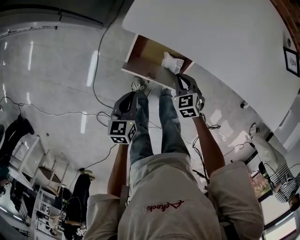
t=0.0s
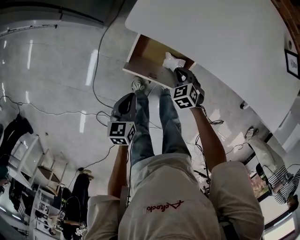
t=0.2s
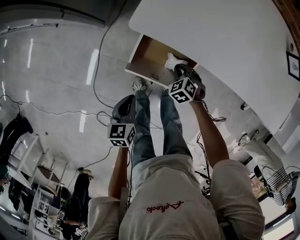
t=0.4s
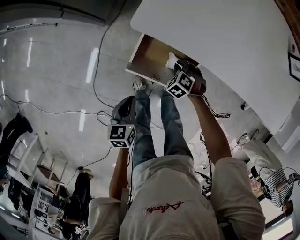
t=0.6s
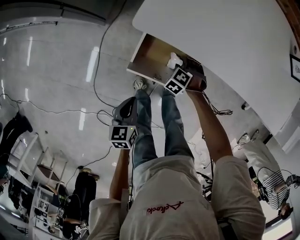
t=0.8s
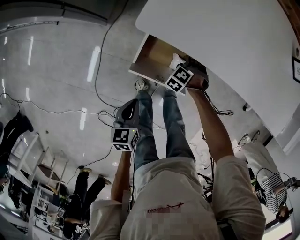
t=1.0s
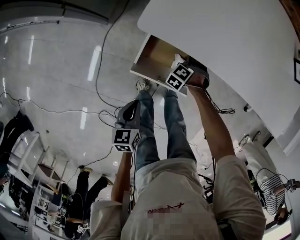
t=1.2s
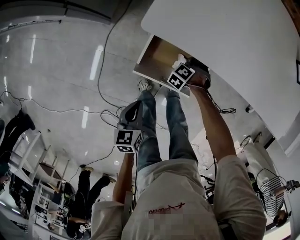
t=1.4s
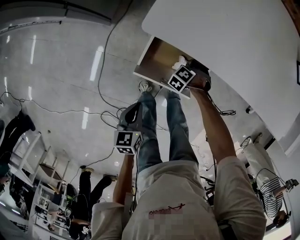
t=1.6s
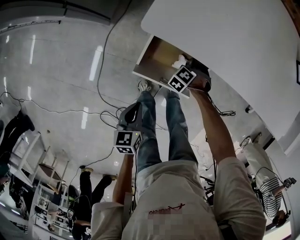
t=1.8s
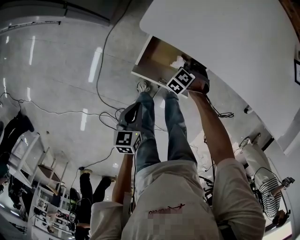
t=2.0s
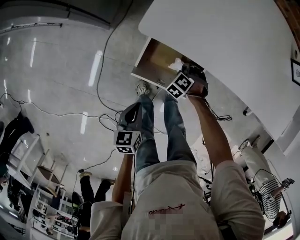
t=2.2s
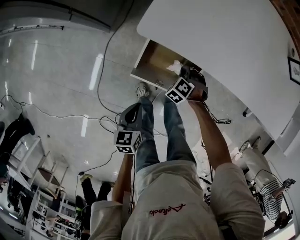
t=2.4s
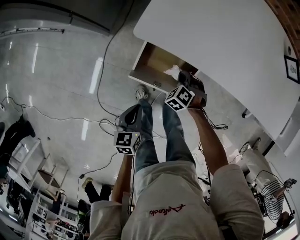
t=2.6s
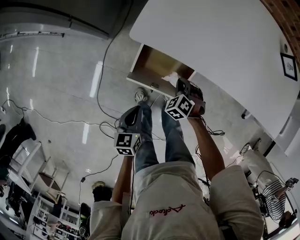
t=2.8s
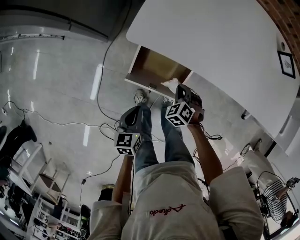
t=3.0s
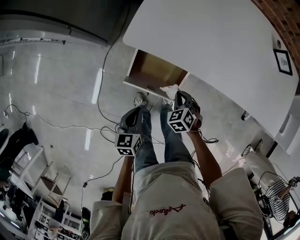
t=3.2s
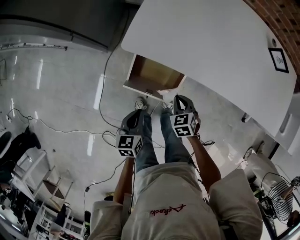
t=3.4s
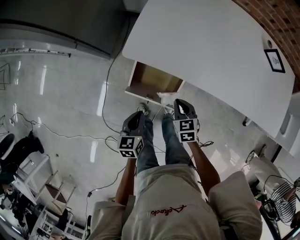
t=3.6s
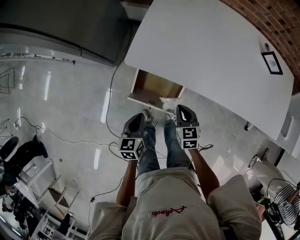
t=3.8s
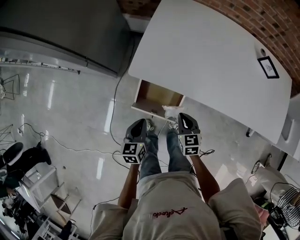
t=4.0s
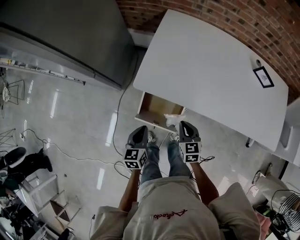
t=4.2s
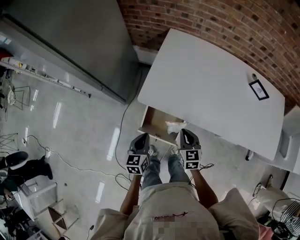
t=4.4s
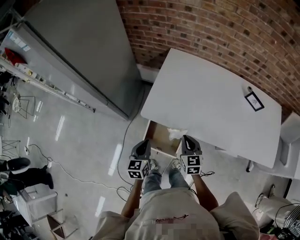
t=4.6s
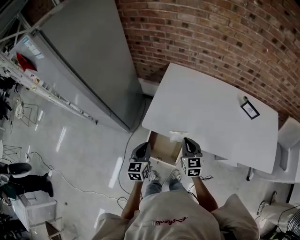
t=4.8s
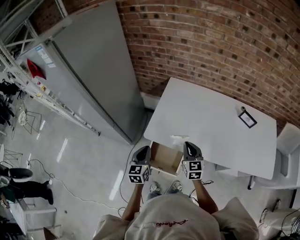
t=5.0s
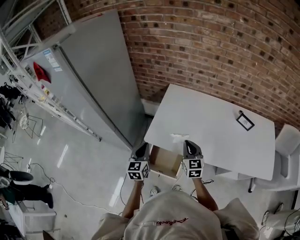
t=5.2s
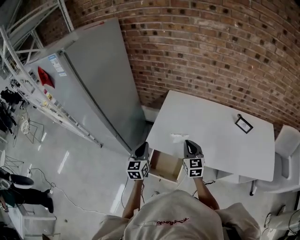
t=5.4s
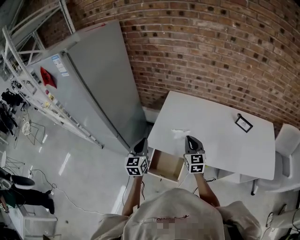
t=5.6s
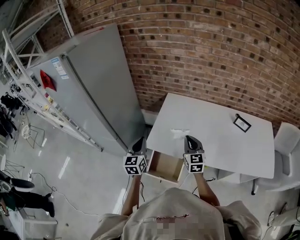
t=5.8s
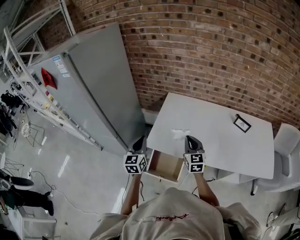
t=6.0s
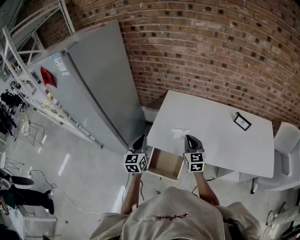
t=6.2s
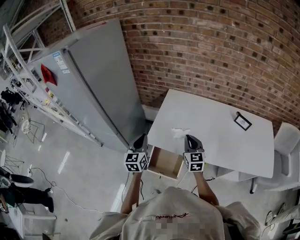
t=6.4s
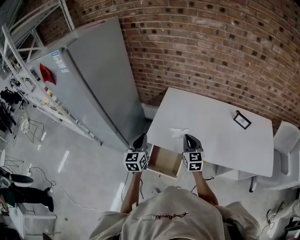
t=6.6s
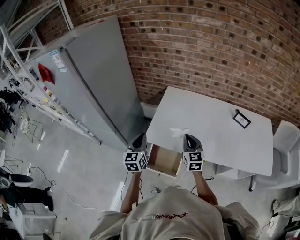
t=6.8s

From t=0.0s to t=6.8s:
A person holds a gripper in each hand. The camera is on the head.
From t=0.0s to t=1.4s: The right gripper goes approximately 15 cm downward, and rotates approximately 50 degrees.
From t=1.4s to t=2.8s: The right gripper travels upward by about 15 cm, and swivels roughly 30 degrees.
From t=2.8s to t=4.0s: The left gripper shifts about 10 cm upward and forward, while the right gripper is displaced upward by some 15 cm, and rolls clockwise, seen from behind, by some 50 degrees.
From t=4.0s to t=5.4s: The two grippers go about 25 cm upward and forward. The right gripper changes its angle by approximately 30 degrees. The left gripper changes its angle by approximately 30 degrees.
From t=5.4s to t=6.8s: The grippers stay close to where they were, moving slightly.

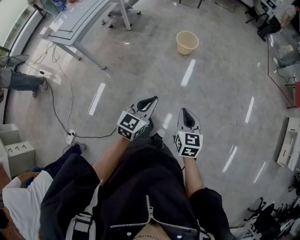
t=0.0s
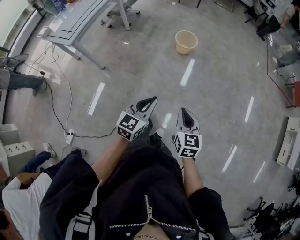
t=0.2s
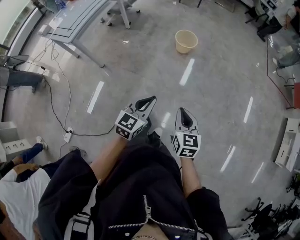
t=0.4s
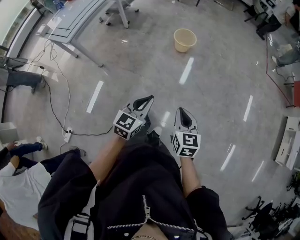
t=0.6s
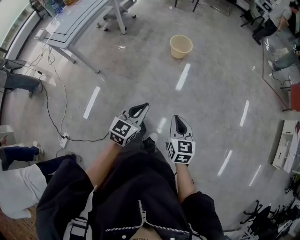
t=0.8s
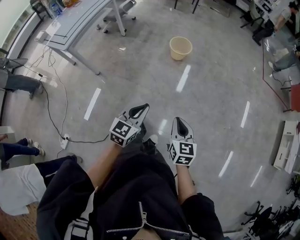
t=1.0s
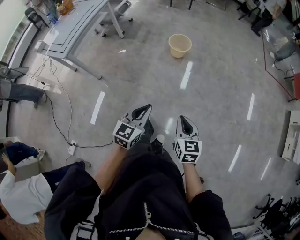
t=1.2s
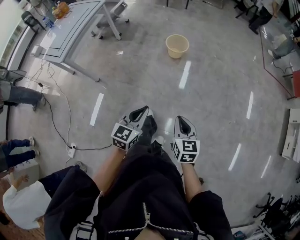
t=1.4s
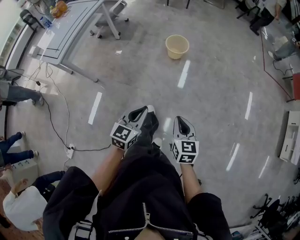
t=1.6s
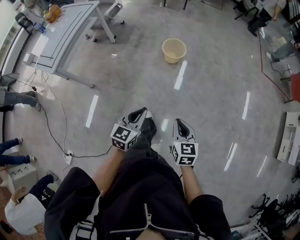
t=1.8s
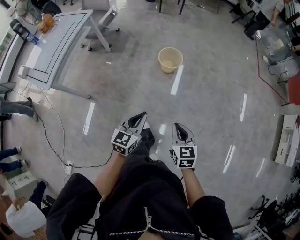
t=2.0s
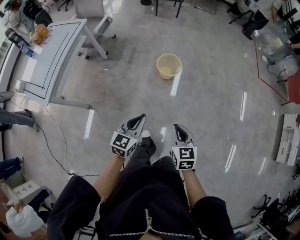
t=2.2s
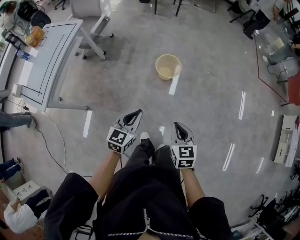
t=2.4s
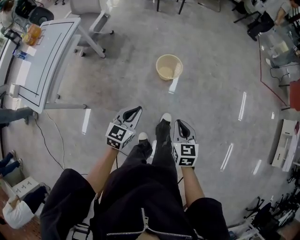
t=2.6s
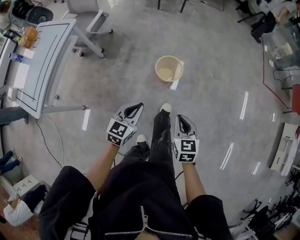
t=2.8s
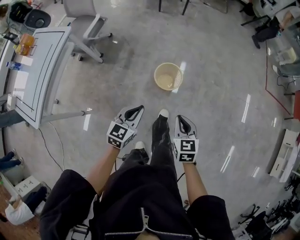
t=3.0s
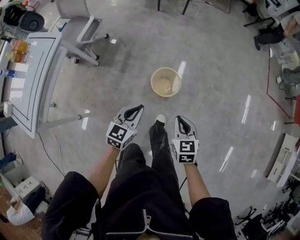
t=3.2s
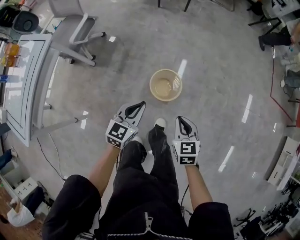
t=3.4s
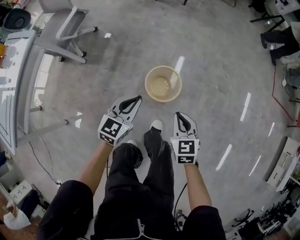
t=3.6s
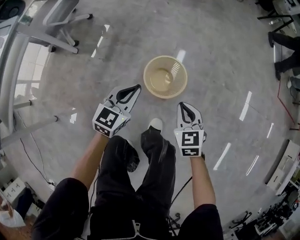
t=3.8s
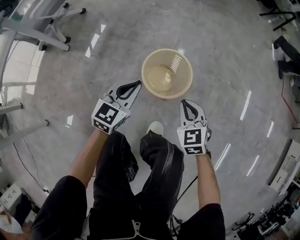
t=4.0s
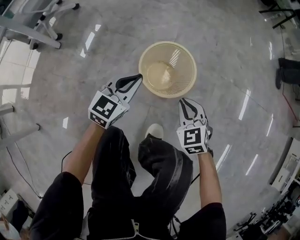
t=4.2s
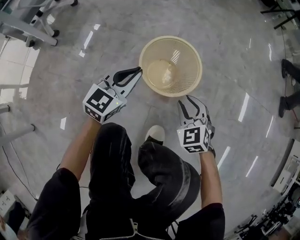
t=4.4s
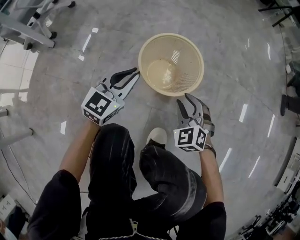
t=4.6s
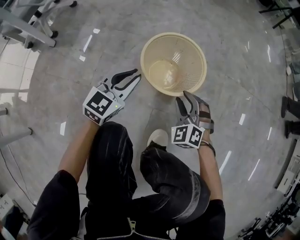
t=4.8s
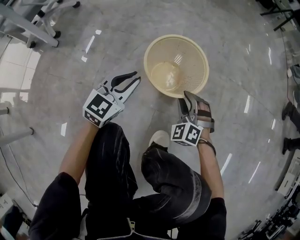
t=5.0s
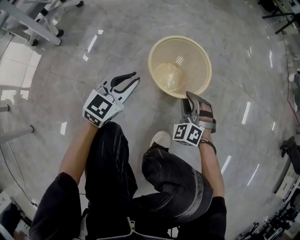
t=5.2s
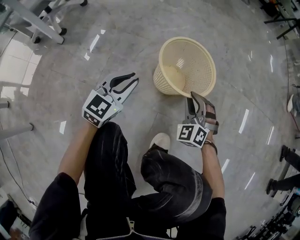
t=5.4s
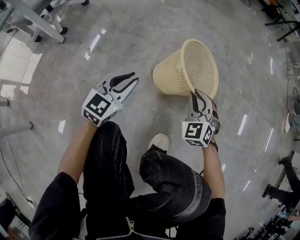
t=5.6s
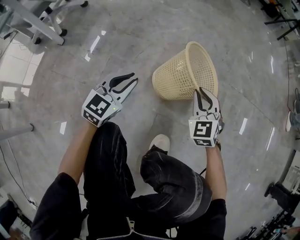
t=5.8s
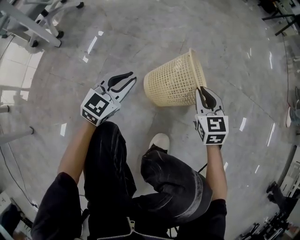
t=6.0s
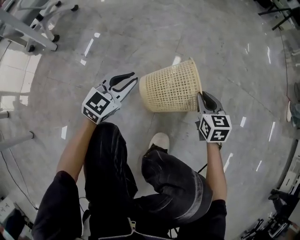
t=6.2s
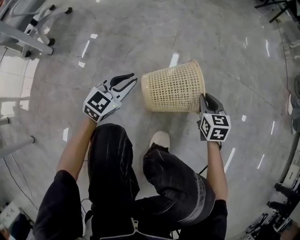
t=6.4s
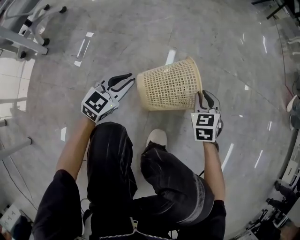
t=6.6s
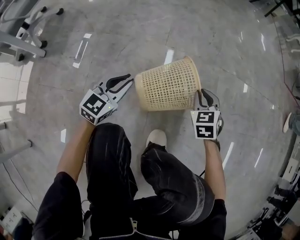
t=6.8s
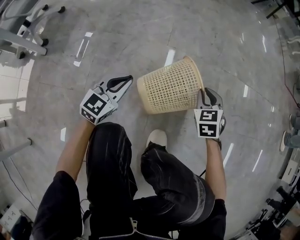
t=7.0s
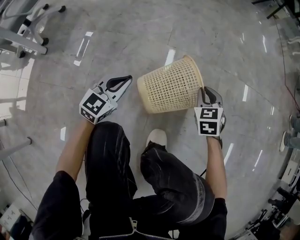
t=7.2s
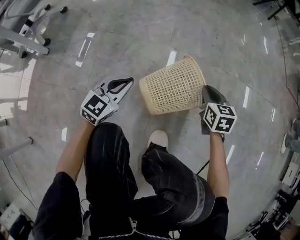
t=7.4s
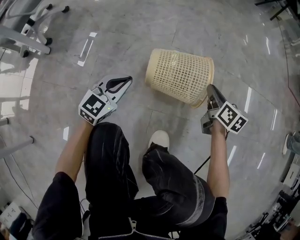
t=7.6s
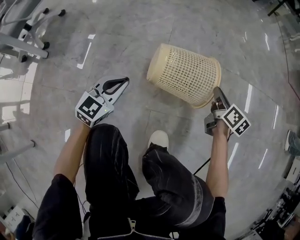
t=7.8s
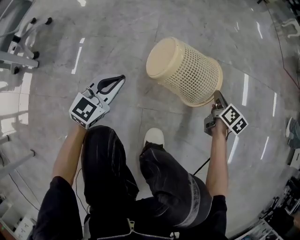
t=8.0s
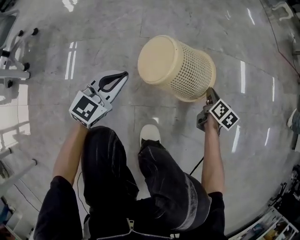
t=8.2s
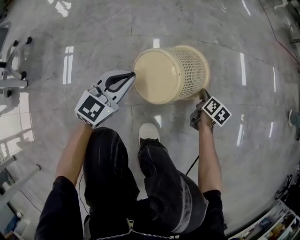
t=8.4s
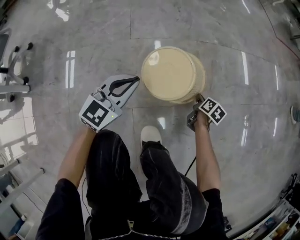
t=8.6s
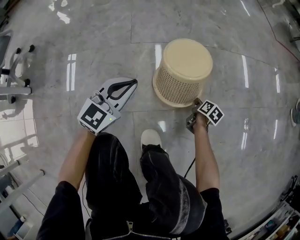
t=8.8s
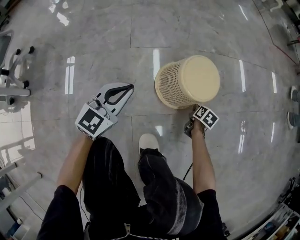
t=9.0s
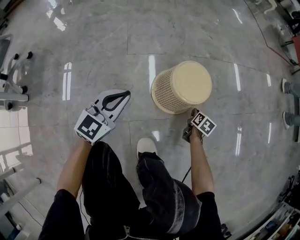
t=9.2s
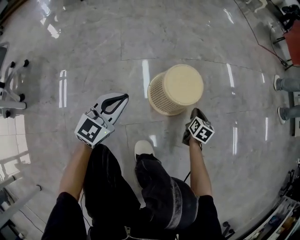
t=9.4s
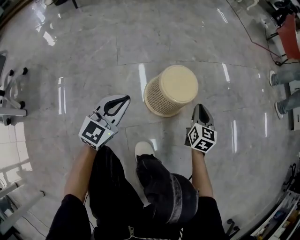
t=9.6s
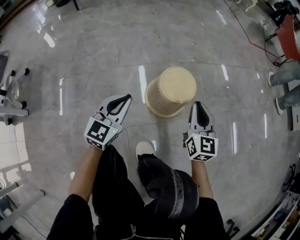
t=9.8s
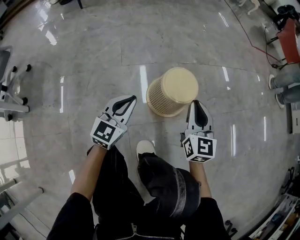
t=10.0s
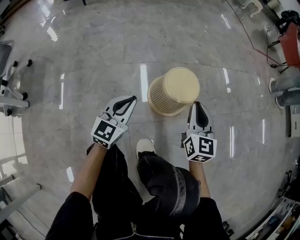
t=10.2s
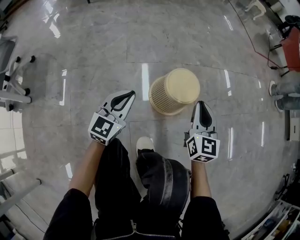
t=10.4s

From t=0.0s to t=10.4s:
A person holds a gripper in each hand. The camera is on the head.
From t=0.0s to t=1.4s: The right gripper ends up about 5 cm from where it was.
From t=1.4s to t=3.0s: Both grippers are carried forward, roughly 60 cm.
From t=3.0s to t=4.4s: The right gripper travels downward by roughly 60 cm, swivels about 40 degrees, and opens. The left gripper heads downward and forward, covering about 60 cm.
From t=4.4s to t=6.0s: The left gripper heads downward, covering approximately 5 cm. Meanwhile the right gripper shifts some 5 cm forward, goes downward and returns, about 5 cm each way, and turns by approximately 20 degrees.
From t=6.0s to t=7.4s: The right gripper heads to the right and downward, covering approximately 10 cm, and rotates about 20 degrees, while the left gripper ends up roughly 5 cm from where it was.
From t=7.4s to t=9.0s: The right gripper changes place by some 30 cm, and twists some 50 degrees clockwise, seen from behind; the left gripper moves approximately 15 cm.
From t=9.0s to t=10.4s: The right gripper goes approximately 35 cm upward, and points its fingers approximately 50 degrees further upward, while the left gripper travels upward by about 5 cm.

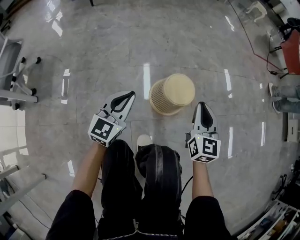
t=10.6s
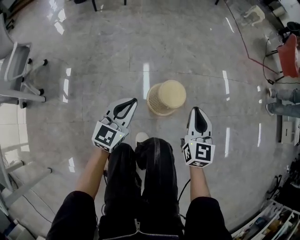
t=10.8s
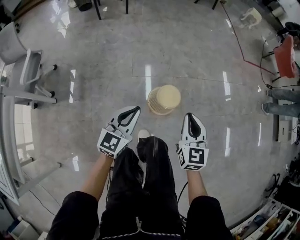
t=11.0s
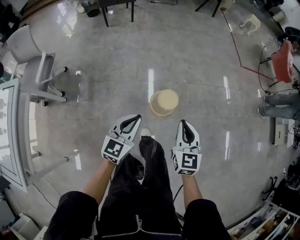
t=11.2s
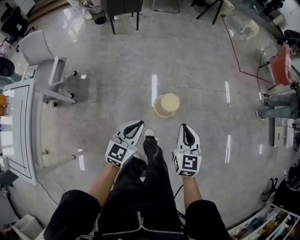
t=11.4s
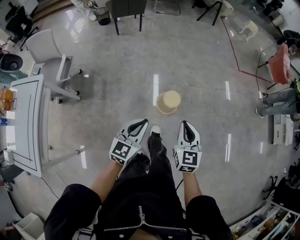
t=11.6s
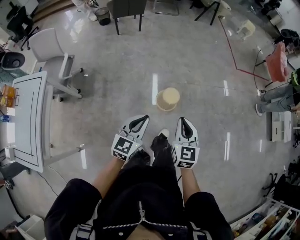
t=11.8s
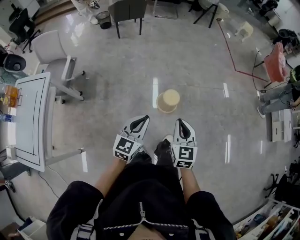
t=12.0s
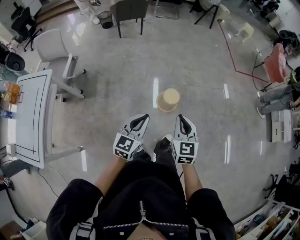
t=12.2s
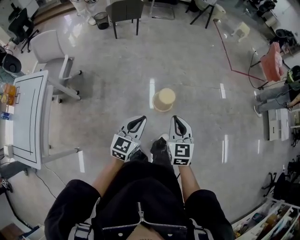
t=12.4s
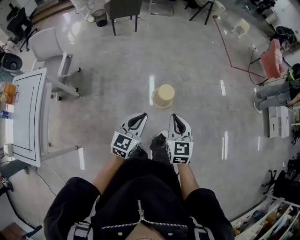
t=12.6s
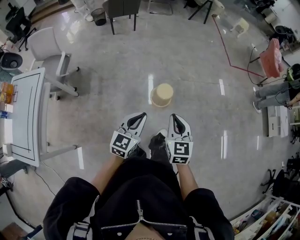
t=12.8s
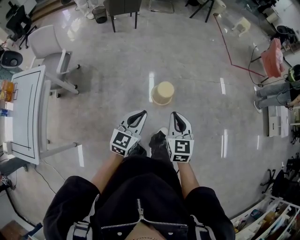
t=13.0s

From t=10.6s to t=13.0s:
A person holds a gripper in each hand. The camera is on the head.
From t=10.6s to t=11.8s: The grippers both shift upward and backward by some 60 cm.
From t=11.8s to t=13.0s: The left gripper changes place by about 5 cm, while the right gripper shifts by some 5 cm.

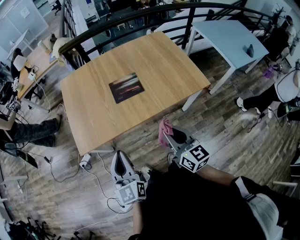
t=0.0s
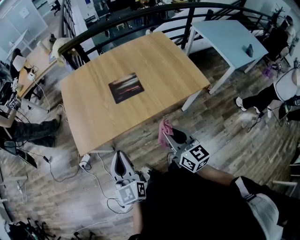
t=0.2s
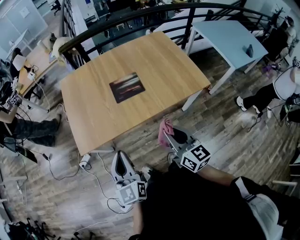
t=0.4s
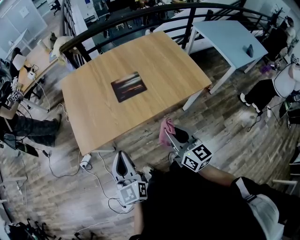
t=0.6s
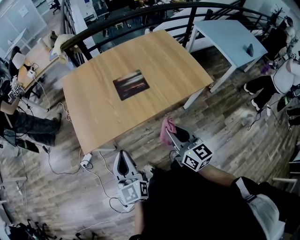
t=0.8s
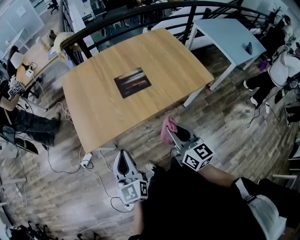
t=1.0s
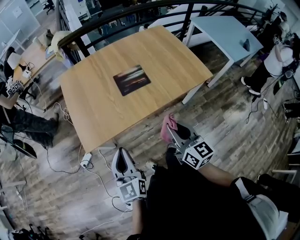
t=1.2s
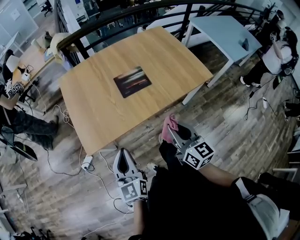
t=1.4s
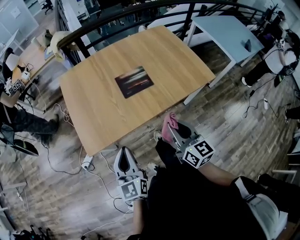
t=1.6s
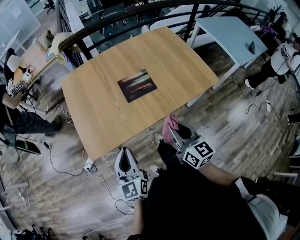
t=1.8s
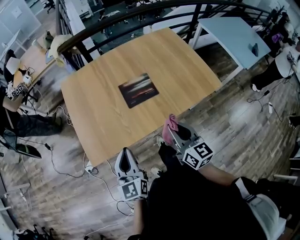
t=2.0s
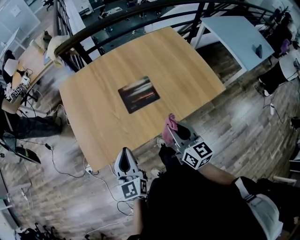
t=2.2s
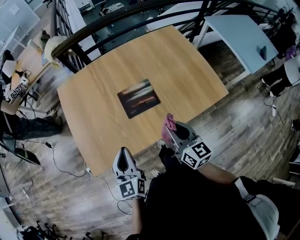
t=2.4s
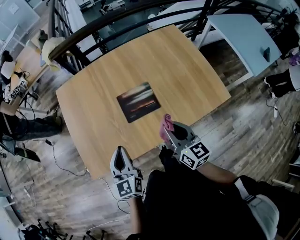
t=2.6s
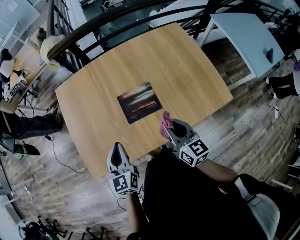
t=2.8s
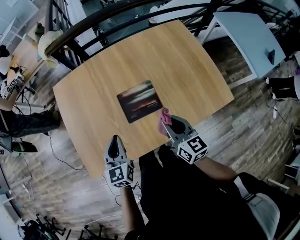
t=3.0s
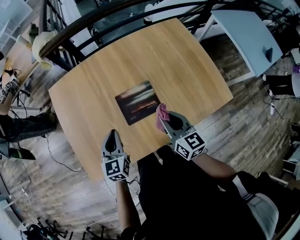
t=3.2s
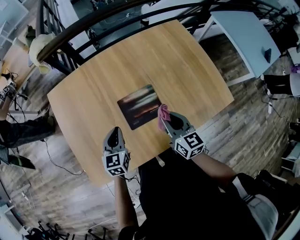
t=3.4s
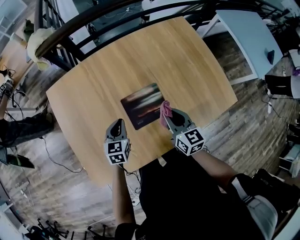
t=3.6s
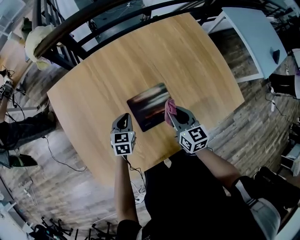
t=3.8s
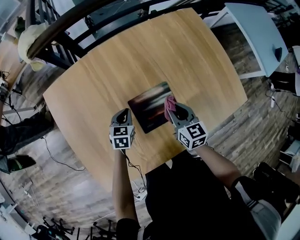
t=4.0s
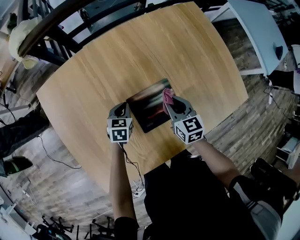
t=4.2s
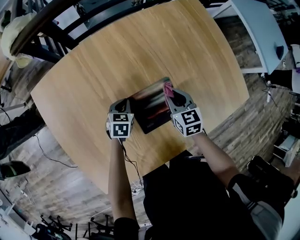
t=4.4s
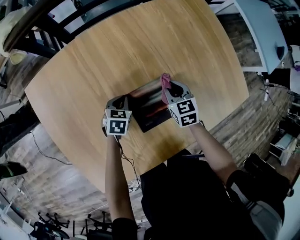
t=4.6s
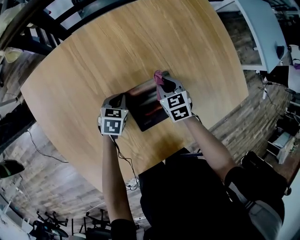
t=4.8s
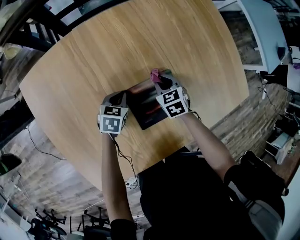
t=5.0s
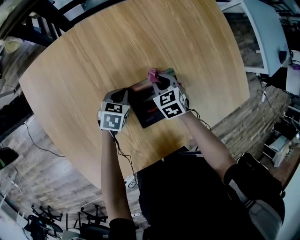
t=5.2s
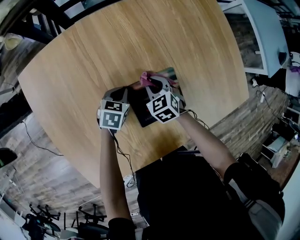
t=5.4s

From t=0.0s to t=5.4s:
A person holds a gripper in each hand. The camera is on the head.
From t=0.0s to t=1.4s: Both grippers travel together to the left, about 10 cm.
From t=1.4s to t=2.8s: Both grippers move forward, approximately 25 cm.
From t=2.8s to t=4.0s: The left gripper goes some 35 cm downward and forward, and turns by approximately 40 degrees; the right gripper shifts approximately 20 cm forward and downward.
From t=4.0s to t=5.4s: The right gripper travels downward and to the left by about 20 cm, and turns by some 40 degrees, while the left gripper moves downward, approximately 5 cm.
